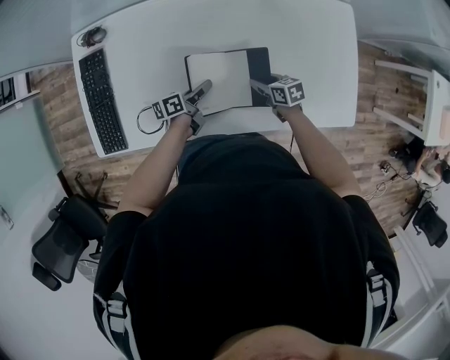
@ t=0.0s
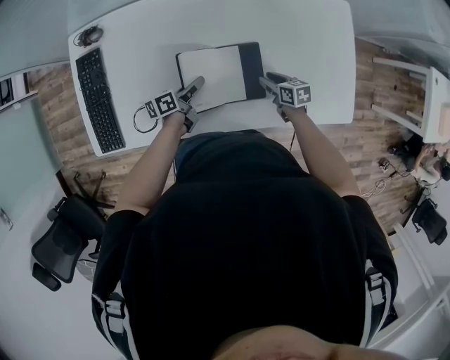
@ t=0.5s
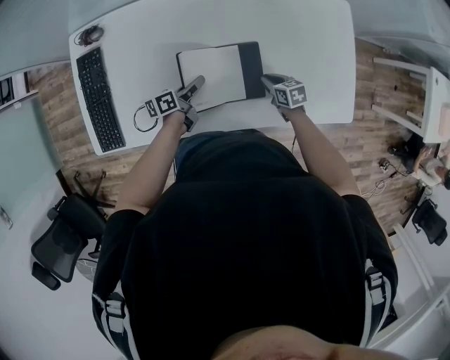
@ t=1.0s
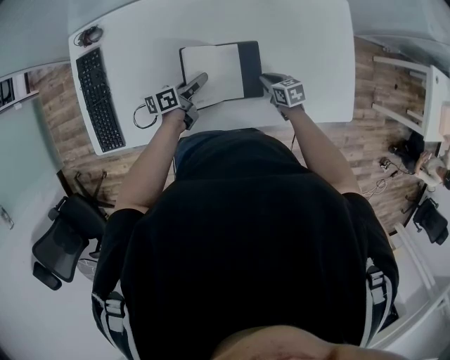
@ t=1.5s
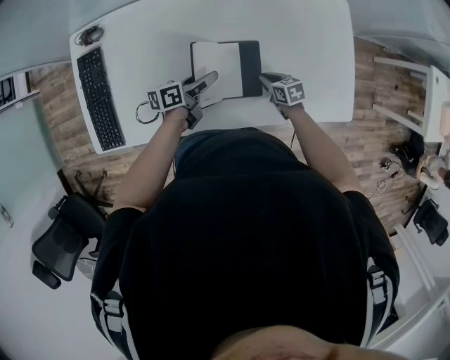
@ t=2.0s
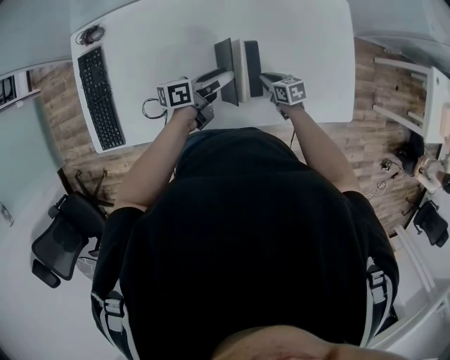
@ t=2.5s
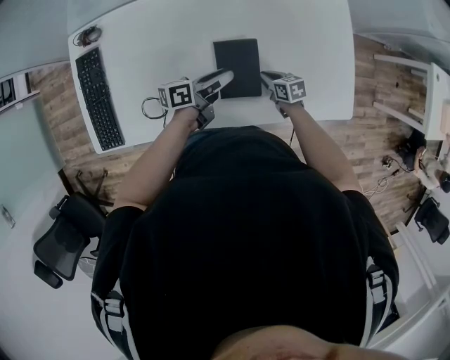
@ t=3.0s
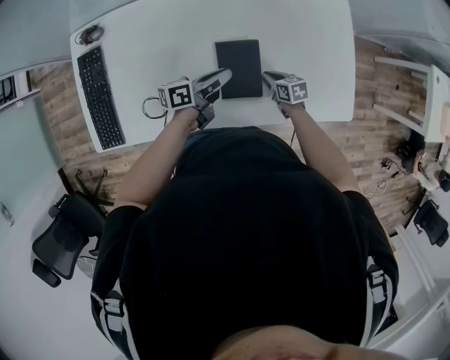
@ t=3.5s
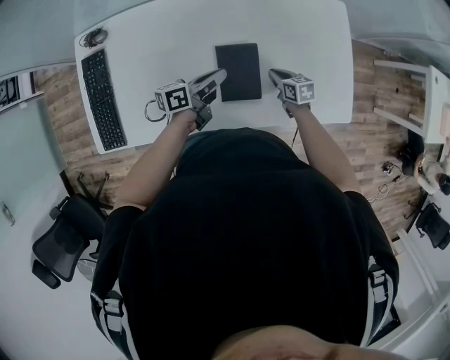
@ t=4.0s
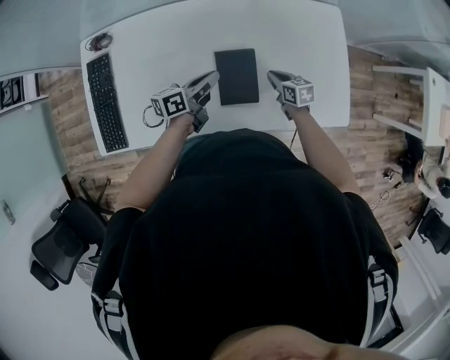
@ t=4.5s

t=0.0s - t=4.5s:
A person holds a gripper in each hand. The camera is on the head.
t=0.0s - t=2.0s: The left gripper travels upward by roughly 5 cm, and opens, while the right gripper closes.
t=2.0s - t=4.5s: The grippers both shift upward by some 10 cm. The left gripper closes.

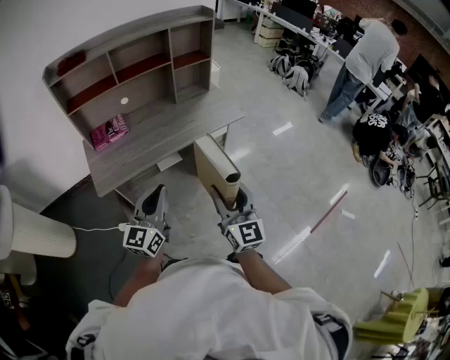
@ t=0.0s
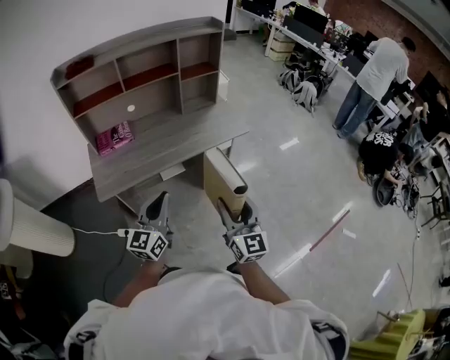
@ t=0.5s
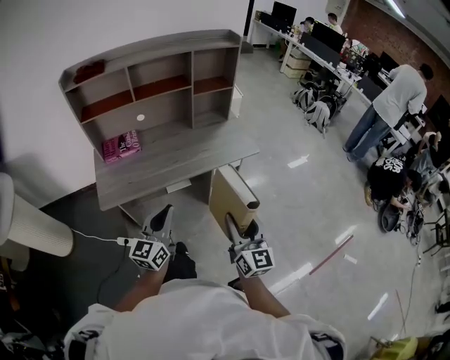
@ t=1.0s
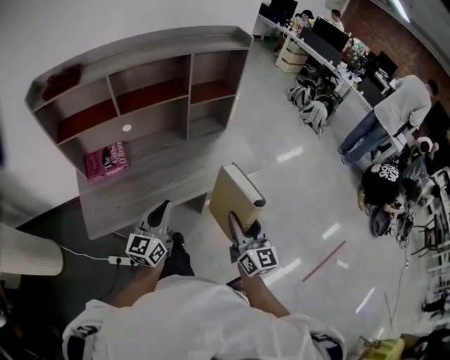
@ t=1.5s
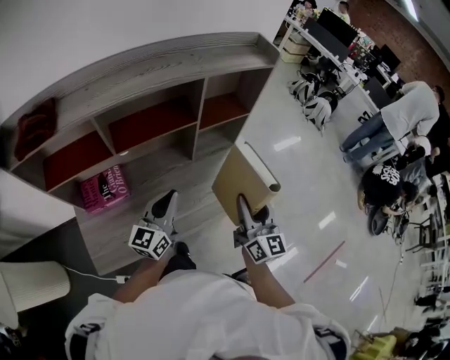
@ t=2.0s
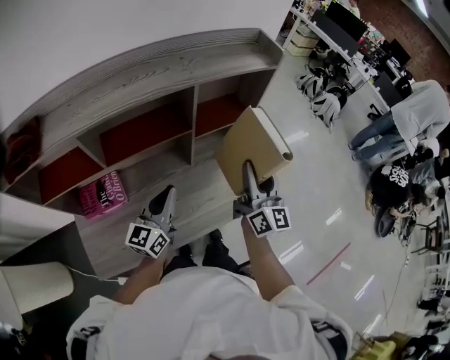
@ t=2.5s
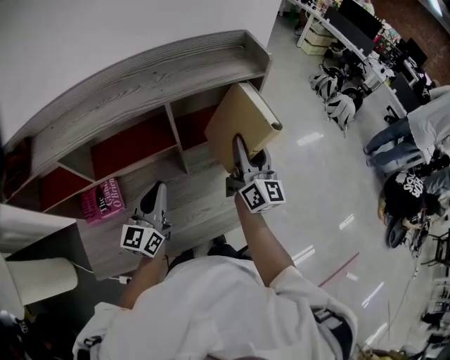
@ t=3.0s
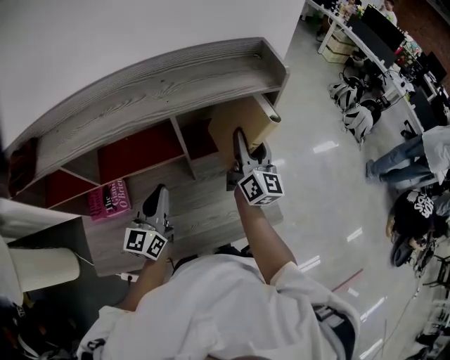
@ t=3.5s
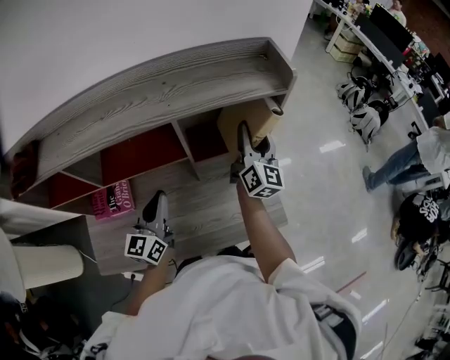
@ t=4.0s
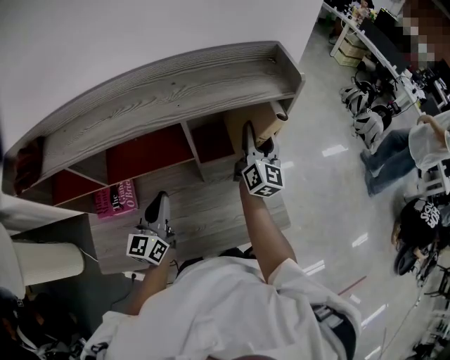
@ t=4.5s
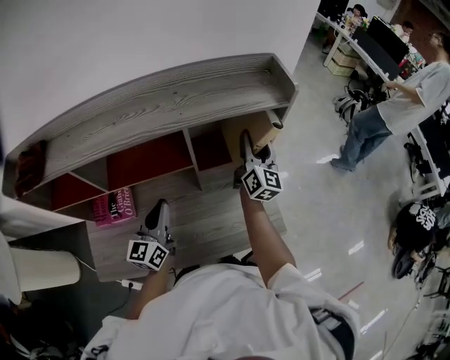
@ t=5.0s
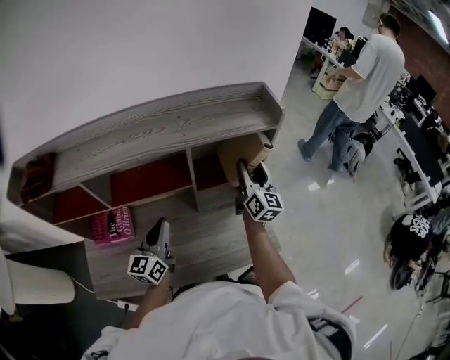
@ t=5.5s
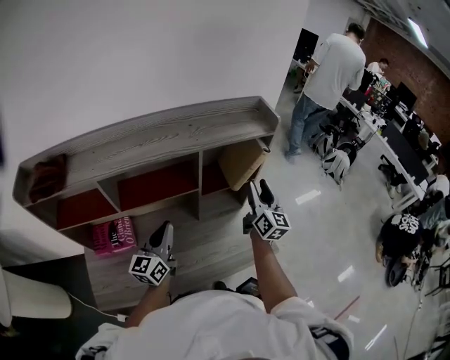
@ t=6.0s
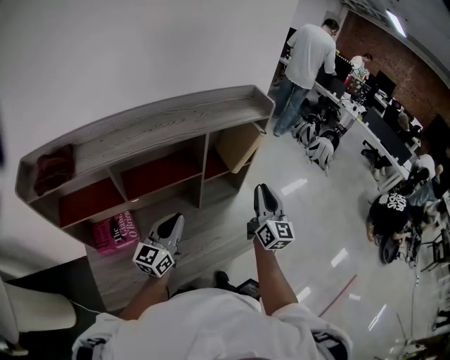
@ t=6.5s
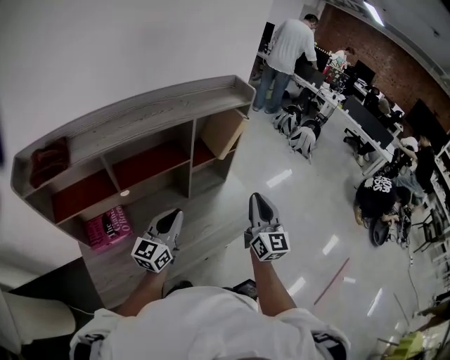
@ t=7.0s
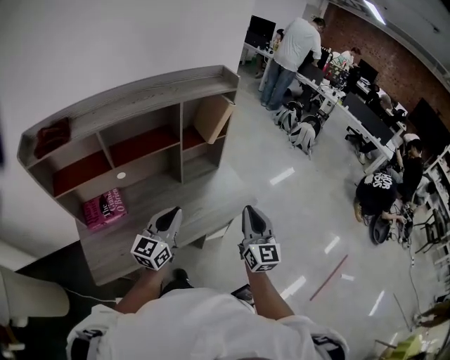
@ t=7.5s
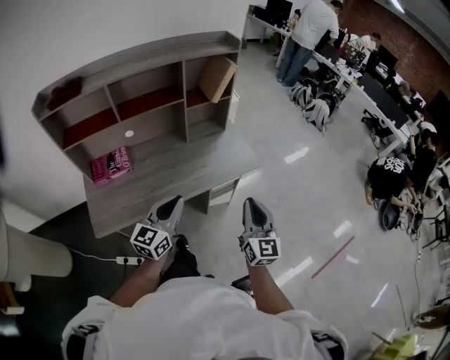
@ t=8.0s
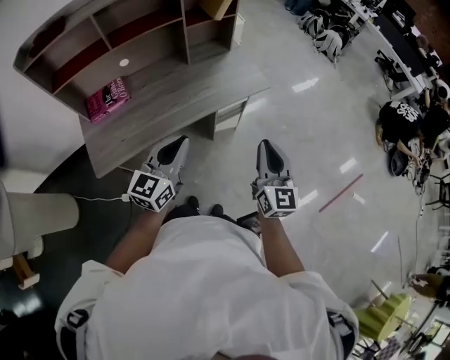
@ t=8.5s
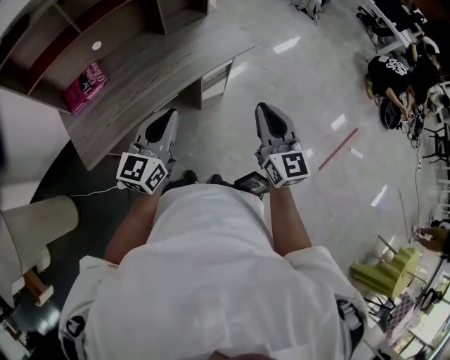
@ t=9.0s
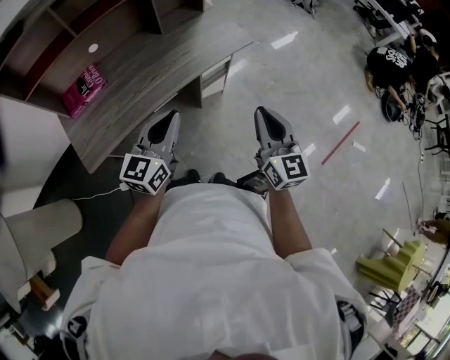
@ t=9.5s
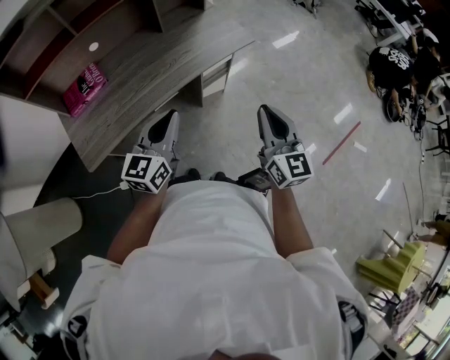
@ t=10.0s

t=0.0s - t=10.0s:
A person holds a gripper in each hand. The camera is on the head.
t=0.0s - t=2.0s: Both grippers are carried forward, some 50 cm.
t=2.0s - t=4.0s: The left gripper shifts approximately 15 cm forward, and swivels approximately 20 degrees. The right gripper moves forward, roughly 35 cm.
t=4.0s - t=6.0s: The left gripper moves some 5 cm, while the right gripper travels backward by approximately 10 cm.
t=6.0s - t=8.0s: The left gripper travels backward and to the right by approximately 35 cm, and swivels approximately 20 degrees. The right gripper is displaced backward by some 50 cm, and closes its fingers.
t=8.0s - t=10.0s: The left gripper heads backward and downward, covering some 10 cm, while the right gripper is displaced backward by roughly 10 cm.
